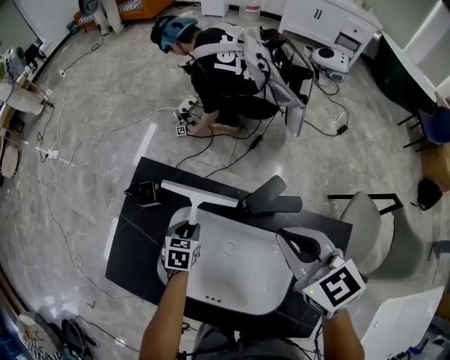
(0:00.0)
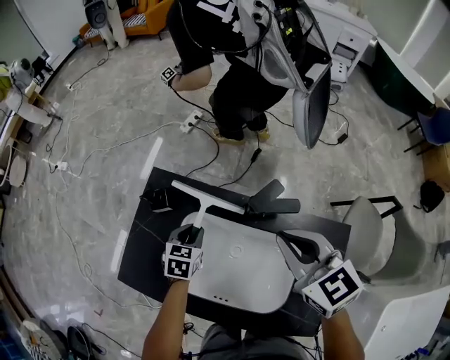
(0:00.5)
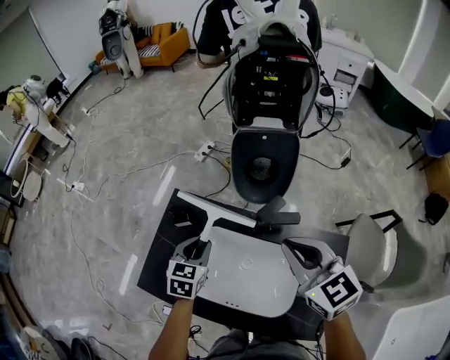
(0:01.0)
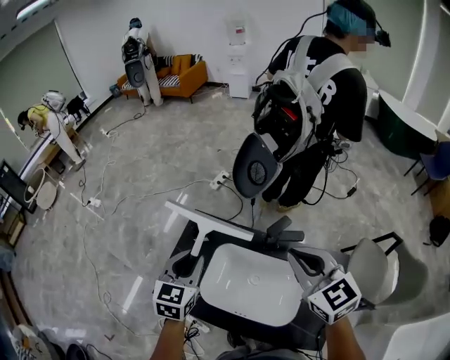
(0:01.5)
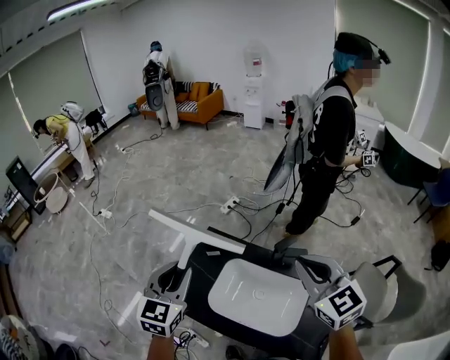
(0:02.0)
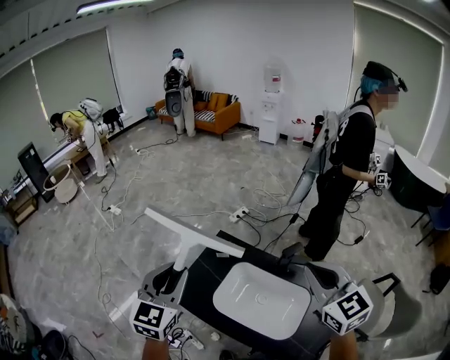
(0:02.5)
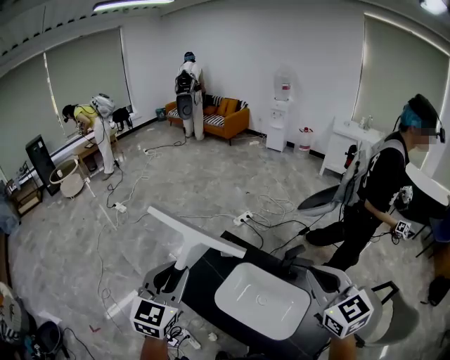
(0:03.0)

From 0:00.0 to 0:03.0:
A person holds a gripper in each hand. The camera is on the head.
From 0:00.0 to 0:01.5: The left gripper is displaced upward by some 40 cm, and changes its angle by roughly 30 degrees; the right gripper travels upward by roughly 20 cm.
From 0:01.5 to 0:03.0: The right gripper shifts roughly 20 cm upward, backward and to the left, while the left gripper heads upward, backward and to the left, covering roughly 30 cm, and changes its angle by approximately 20 degrees.

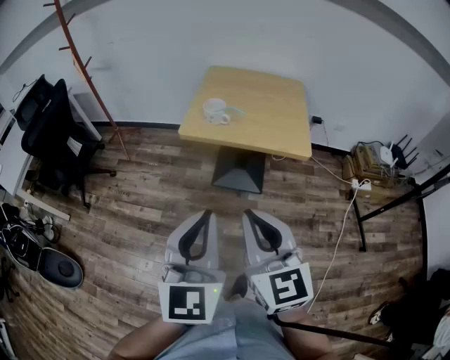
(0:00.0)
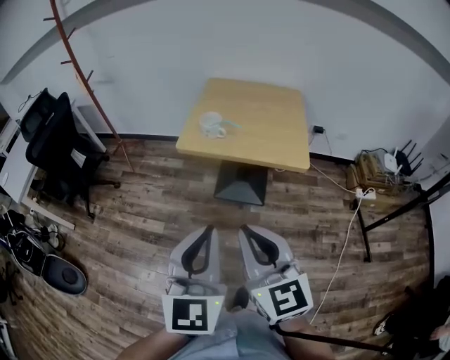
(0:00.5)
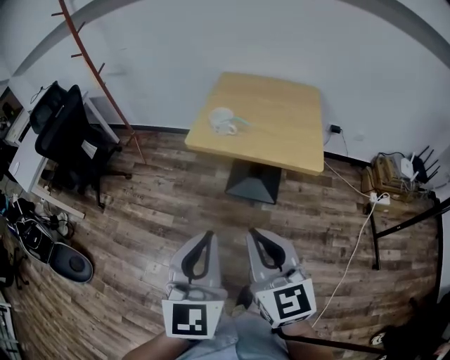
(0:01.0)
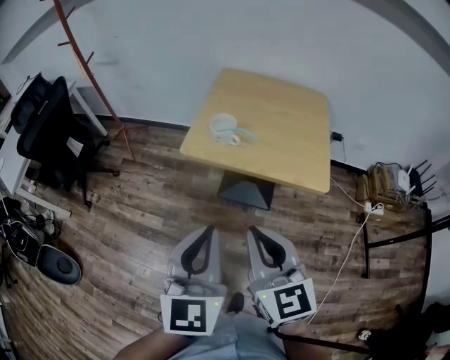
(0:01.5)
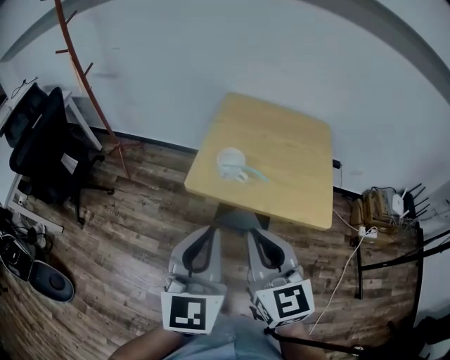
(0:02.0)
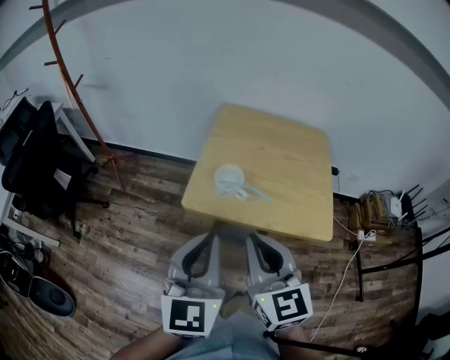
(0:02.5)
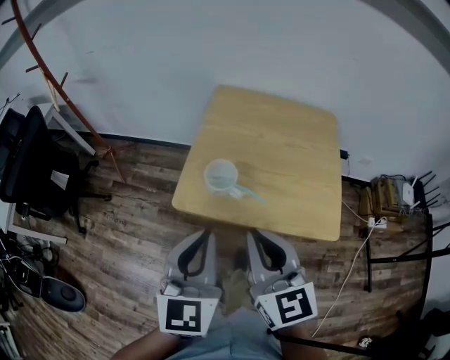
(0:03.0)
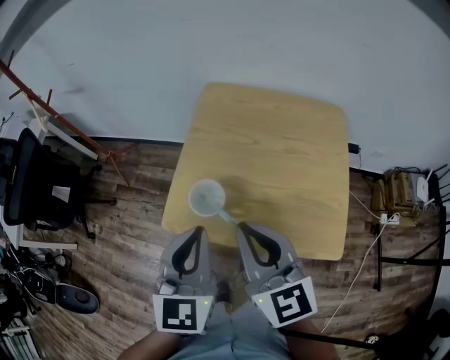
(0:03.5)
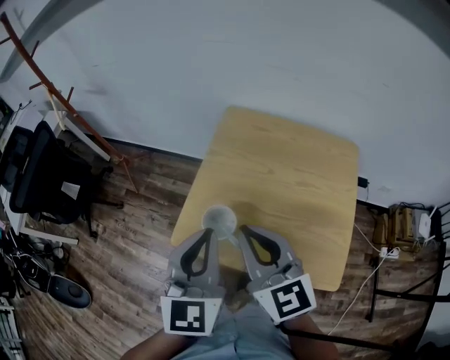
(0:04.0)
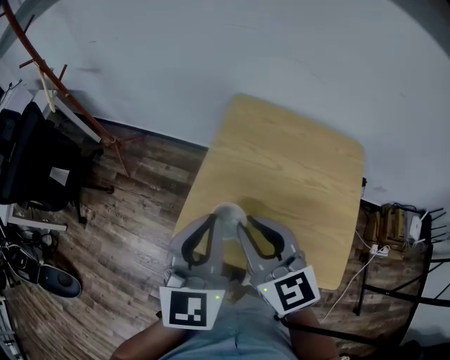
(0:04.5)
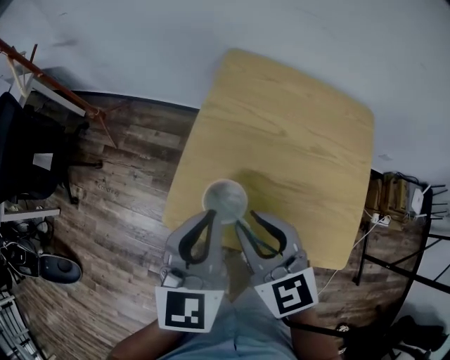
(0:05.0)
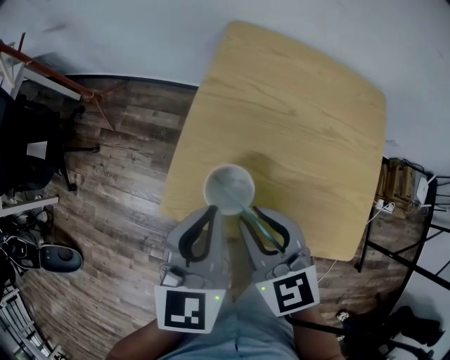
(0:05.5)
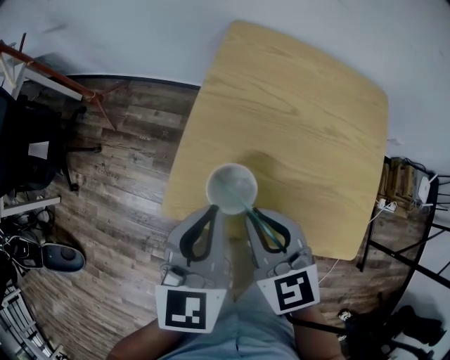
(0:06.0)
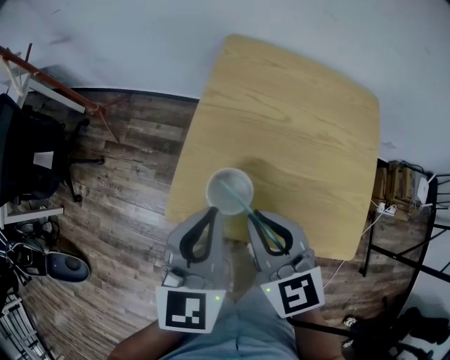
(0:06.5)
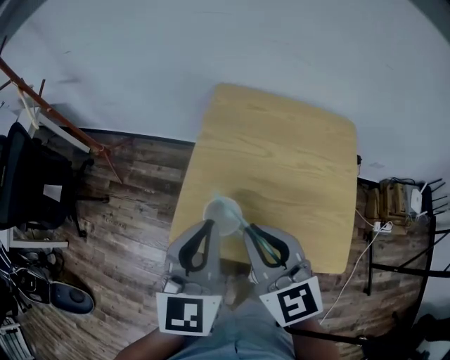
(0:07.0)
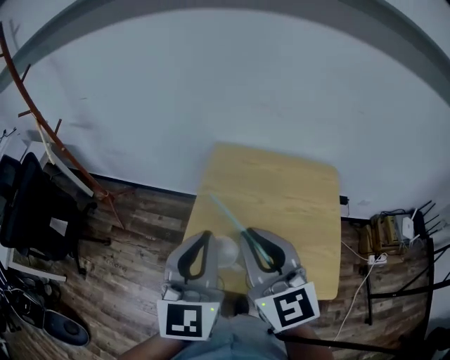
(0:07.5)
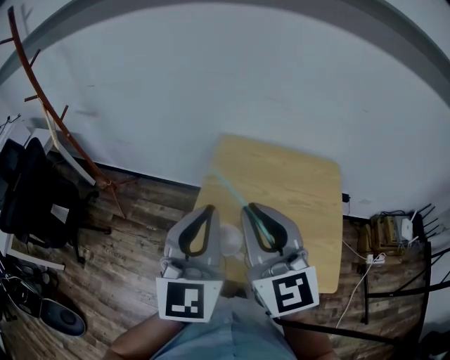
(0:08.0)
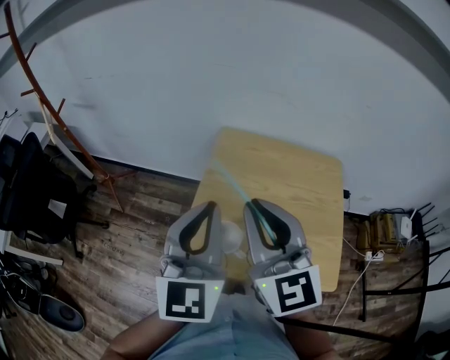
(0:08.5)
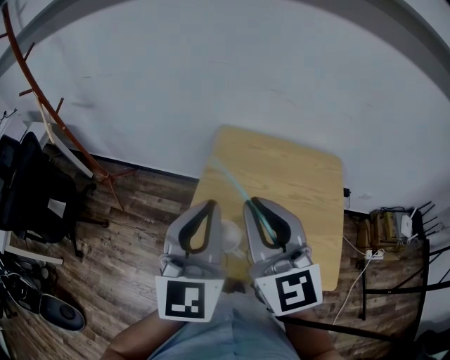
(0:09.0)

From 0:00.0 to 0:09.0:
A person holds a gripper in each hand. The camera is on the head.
From 0:00.0 to 0:02.0: Both grippers travel together forward, about 25 cm.
From 0:02.0 to 0:04.5: Both grippers move forward, approximately 30 cm.
From 0:04.5 to 0:07.0: The right gripper goes downward and returns, roughly 10 cm each way. The left gripper travels downward and back again, roughly 10 cm each way.
From 0:07.0 to 0:09.0: The grippers both shift upward by approximately 10 cm.

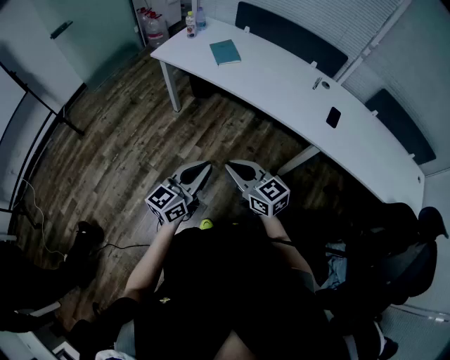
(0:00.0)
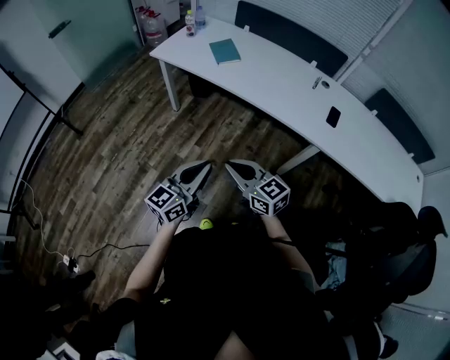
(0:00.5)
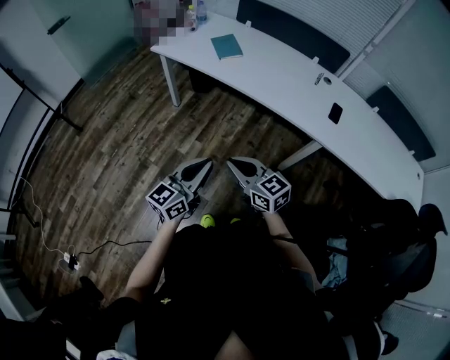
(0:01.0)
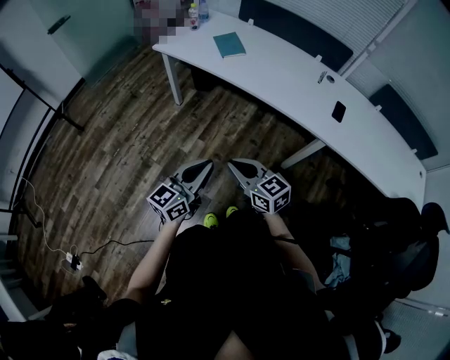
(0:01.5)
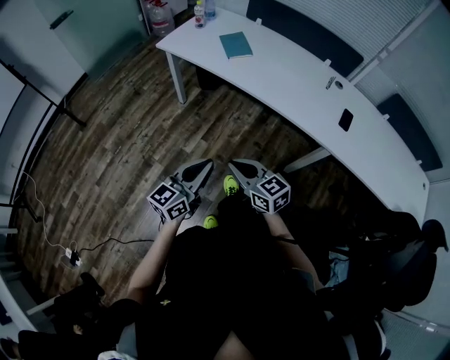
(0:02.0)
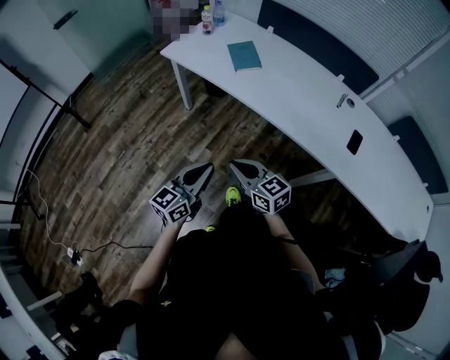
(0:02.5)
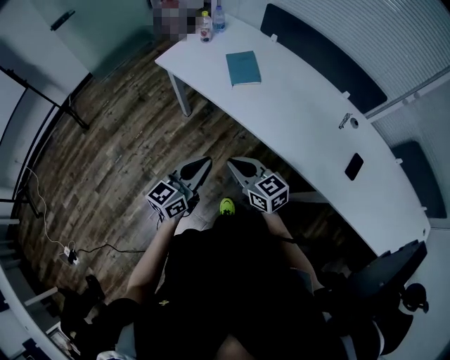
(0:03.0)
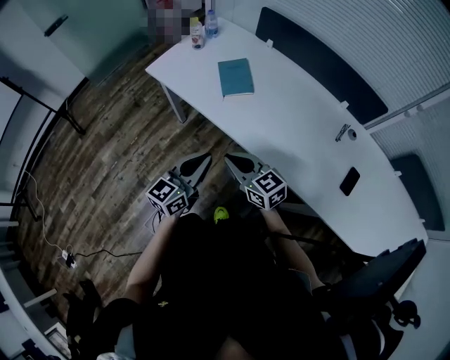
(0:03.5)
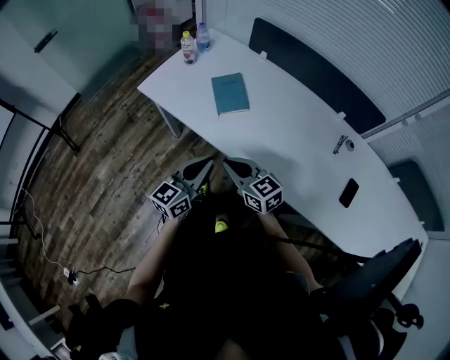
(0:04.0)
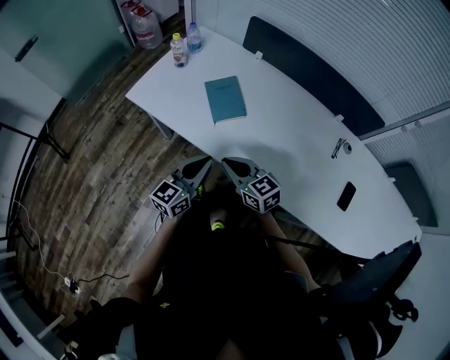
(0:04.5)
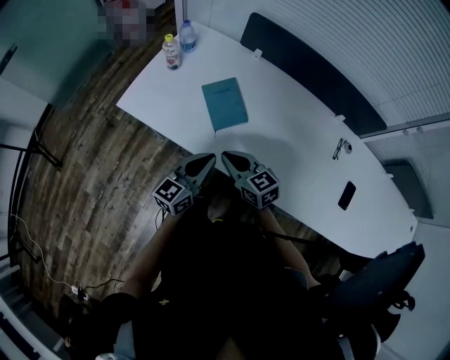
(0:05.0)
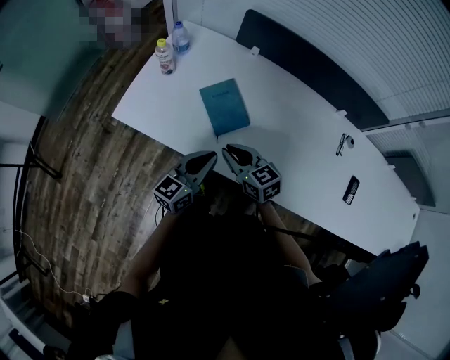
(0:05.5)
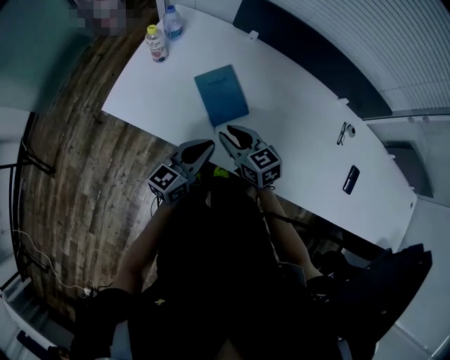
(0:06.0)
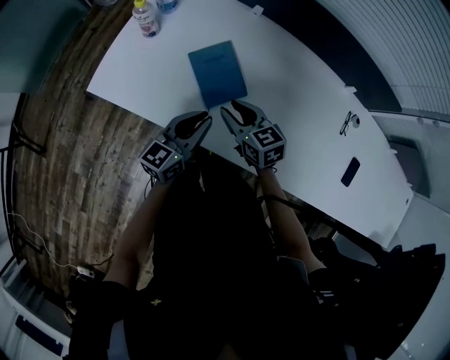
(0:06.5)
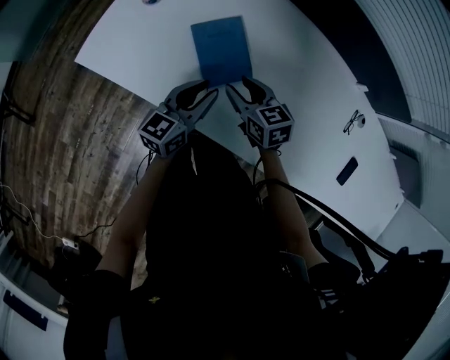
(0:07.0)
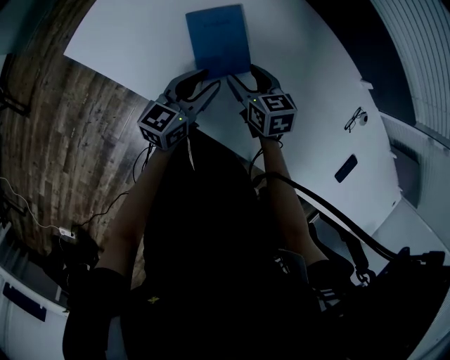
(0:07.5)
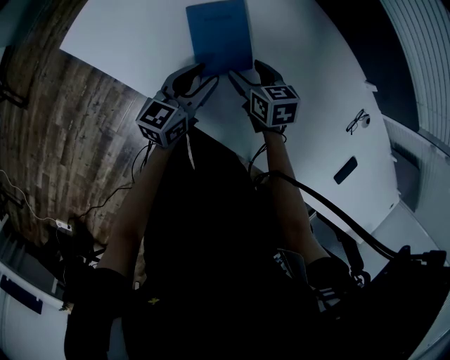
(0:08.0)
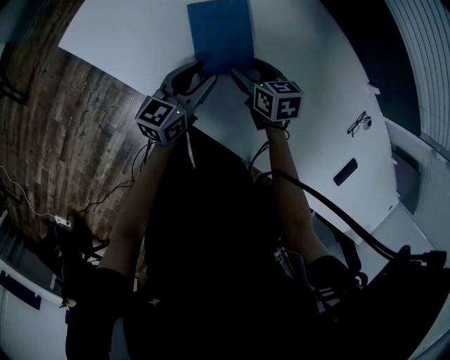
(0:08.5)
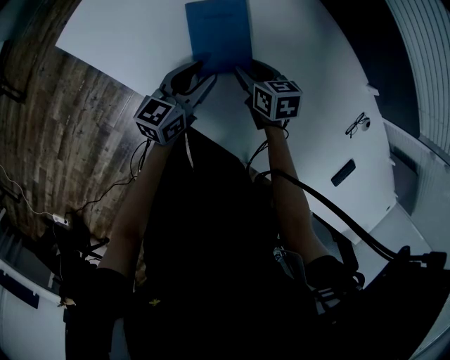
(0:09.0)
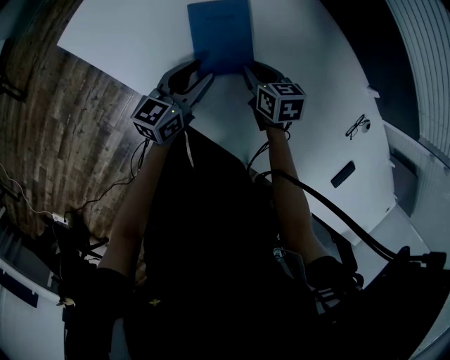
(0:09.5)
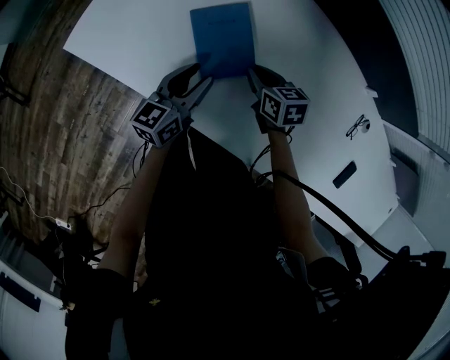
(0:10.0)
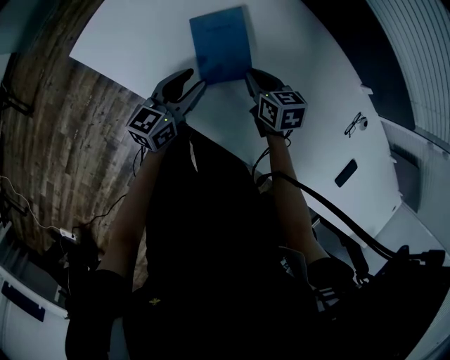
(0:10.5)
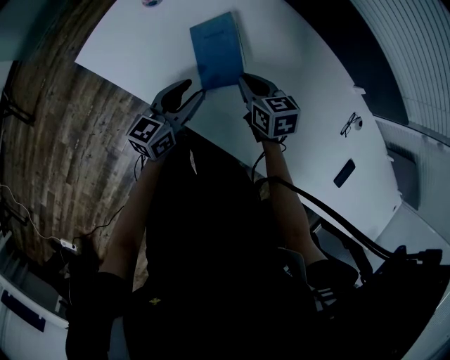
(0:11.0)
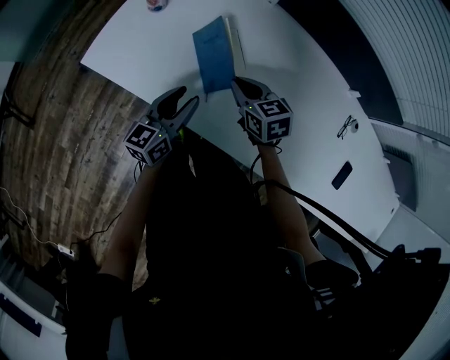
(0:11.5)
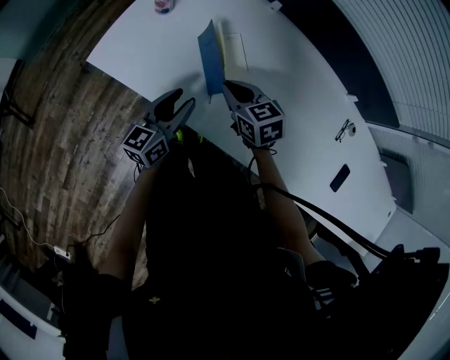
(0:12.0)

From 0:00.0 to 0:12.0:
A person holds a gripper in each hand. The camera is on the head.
From 0:00.0 to 0:02.0: The right gripper shifts by approximately 5 cm; the left gripper moves approximately 5 cm.
From 0:02.0 to 0:04.0: Both grippers travel together forward, about 35 cm.
From 0:04.0 to 0:06.0: The grippers both shift forward by some 20 cm. The right gripper swivels some 20 degrees.
From 0:06.0 to 0:08.0: The left gripper heads downward and forward, covering roughly 15 cm, and opens, while the right gripper is displaced downward, forward and to the right by roughly 20 cm, and opens.
From 0:08.0 to 0:10.0: The right gripper closes up.
From 0:10.0 to 0:12.0: The left gripper heads to the left, covering roughly 5 cm. Meanwhile the right gripper moves to the left and upward, some 15 cm.

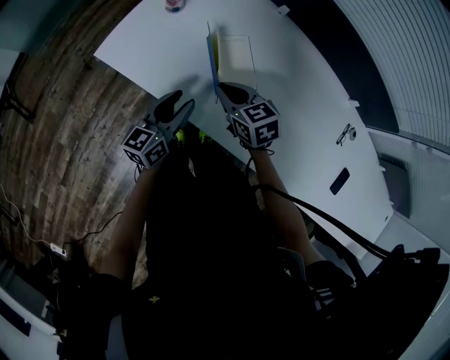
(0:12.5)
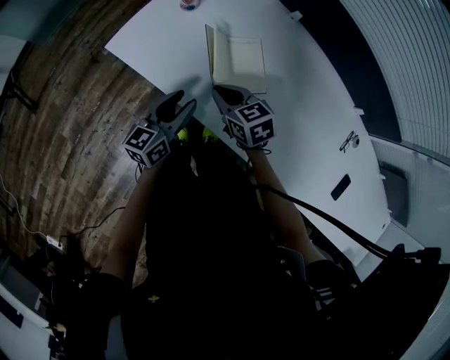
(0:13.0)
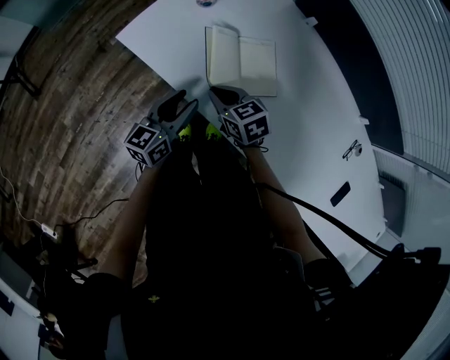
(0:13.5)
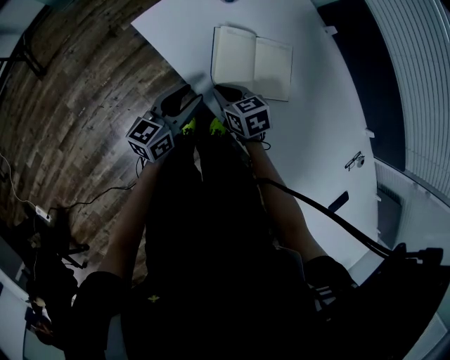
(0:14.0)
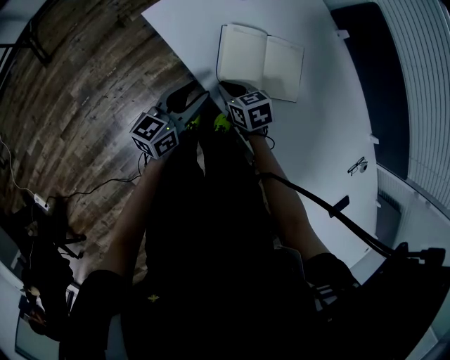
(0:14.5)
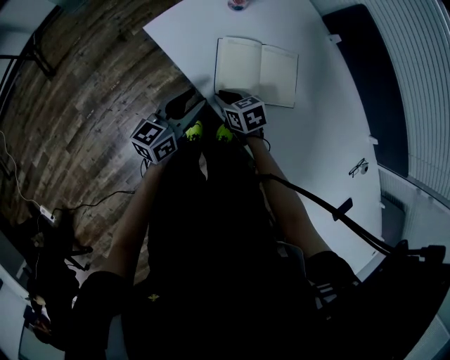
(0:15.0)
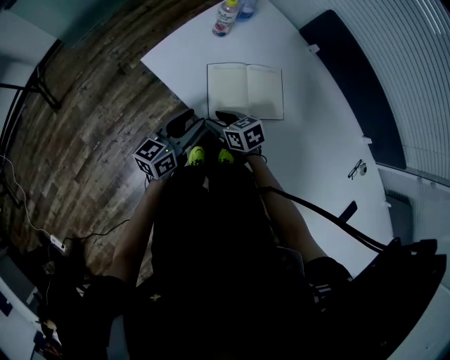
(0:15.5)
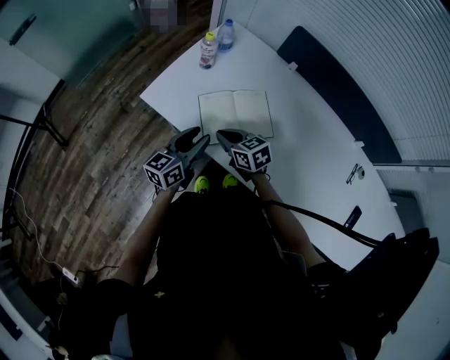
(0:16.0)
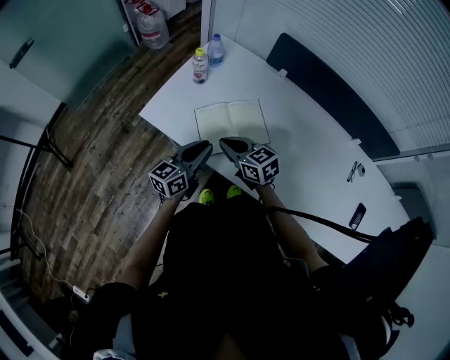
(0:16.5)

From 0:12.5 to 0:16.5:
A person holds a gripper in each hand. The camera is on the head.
From 0:12.5 to 0:14.5: The left gripper moves to the left, about 10 cm. Meanwhile the right gripper heads downward and to the left, covering about 15 cm.
From 0:14.5 to 0:16.5: The right gripper moves upward, some 15 cm, rotates roughly 30 degrees, and opens and closes again, while the left gripper shifts some 10 cm upward and to the right, and closes.
